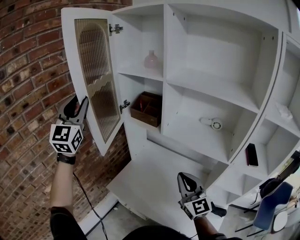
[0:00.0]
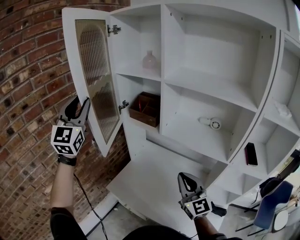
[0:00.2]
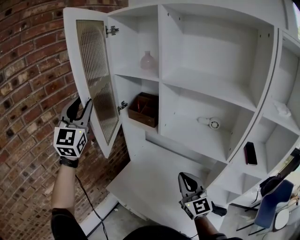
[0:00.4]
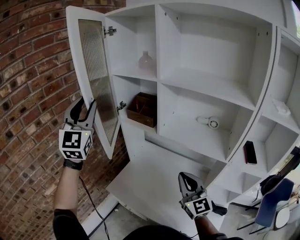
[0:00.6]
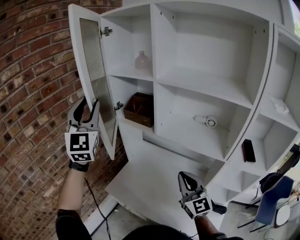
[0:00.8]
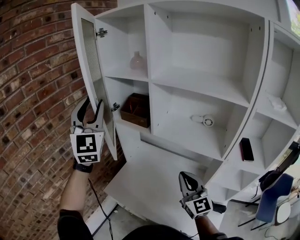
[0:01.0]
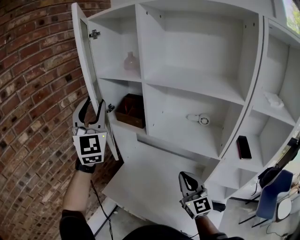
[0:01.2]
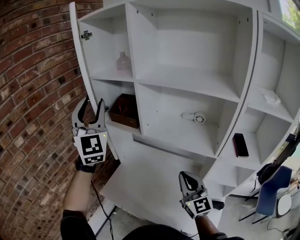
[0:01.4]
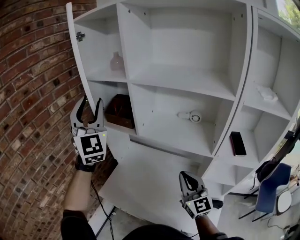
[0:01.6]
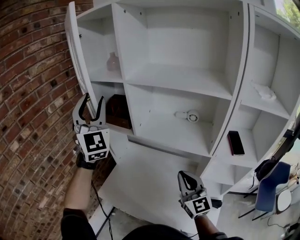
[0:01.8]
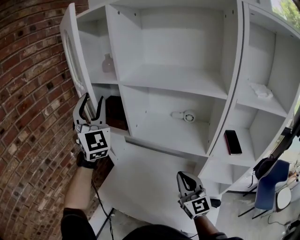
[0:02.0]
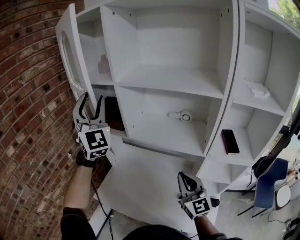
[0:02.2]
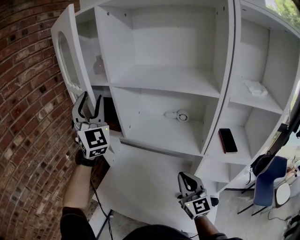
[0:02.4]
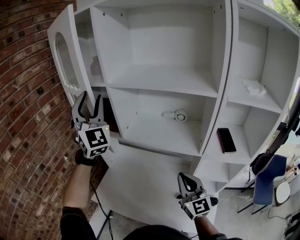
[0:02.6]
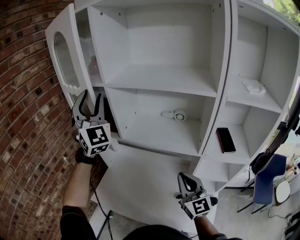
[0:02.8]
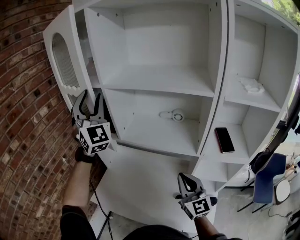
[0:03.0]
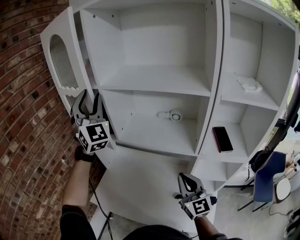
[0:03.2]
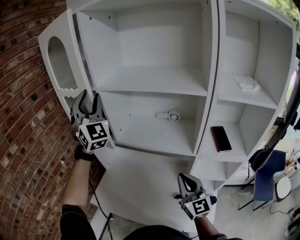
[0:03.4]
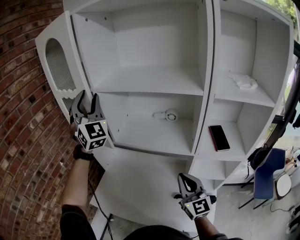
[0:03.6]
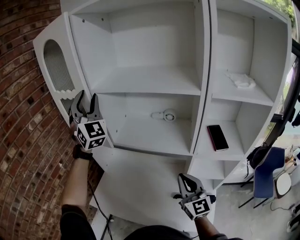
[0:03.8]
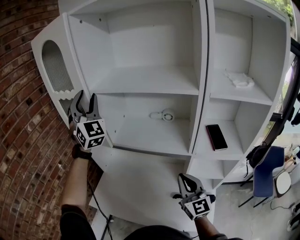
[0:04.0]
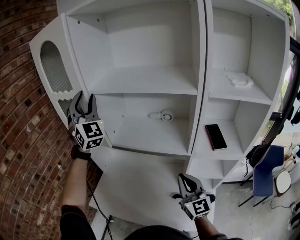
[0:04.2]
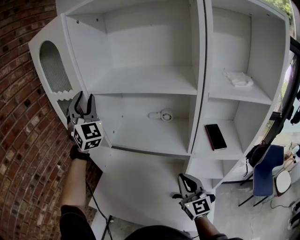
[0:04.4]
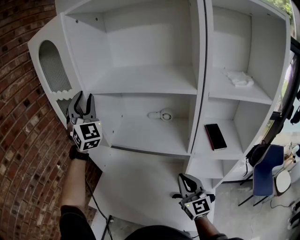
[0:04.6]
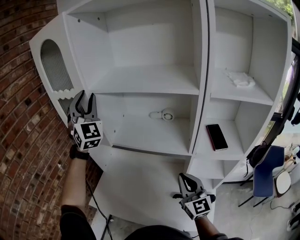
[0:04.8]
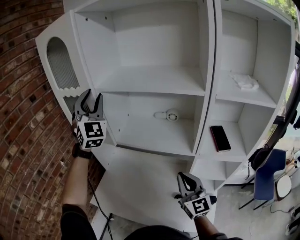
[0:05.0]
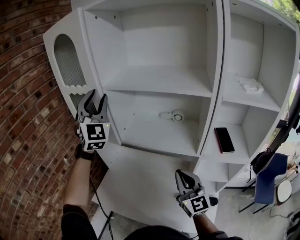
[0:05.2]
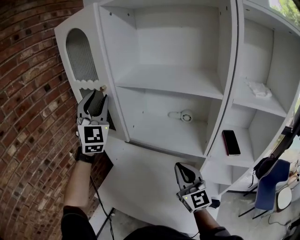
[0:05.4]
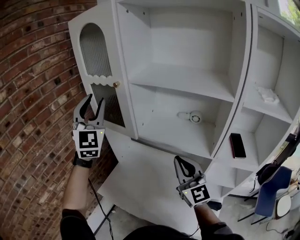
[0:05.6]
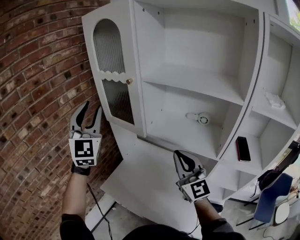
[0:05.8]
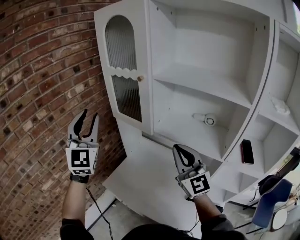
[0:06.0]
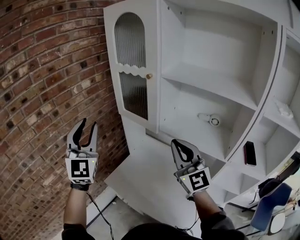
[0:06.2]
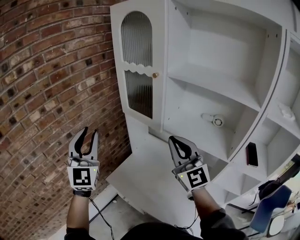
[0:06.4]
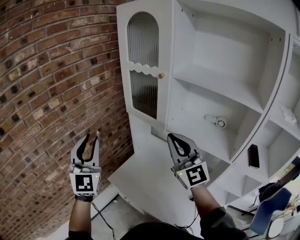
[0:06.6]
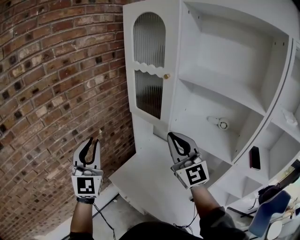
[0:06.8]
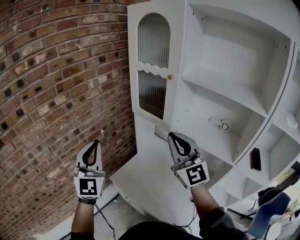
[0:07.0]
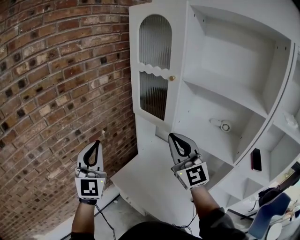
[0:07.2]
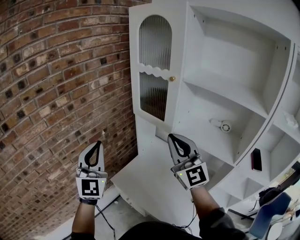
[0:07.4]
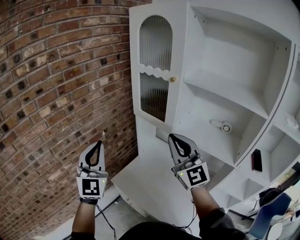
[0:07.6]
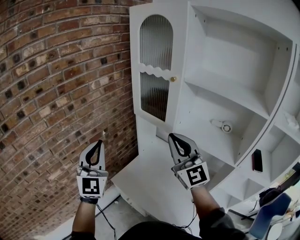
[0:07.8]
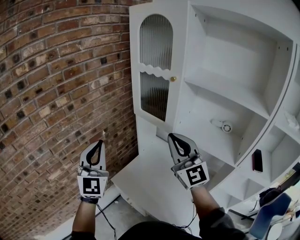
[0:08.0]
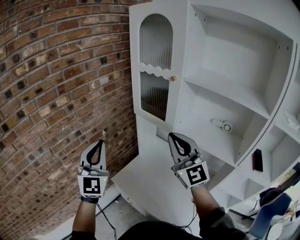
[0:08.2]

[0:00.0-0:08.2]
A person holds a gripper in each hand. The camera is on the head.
0:00.0 to 0:01.6: The left gripper goes about 20 cm to the right. Meanwhile the right gripper moves to the right, about 10 cm.
0:01.6 to 0:03.2: The right gripper heads to the right, covering roughly 5 cm. The left gripper moves to the right and forward, some 10 cm.
0:03.2 to 0:05.0: The grippers make only small movements.
0:05.0 to 0:06.6: The right gripper shifts about 30 cm to the left, upward and forward, and turns by some 30 degrees; the left gripper heads to the left and backward, covering some 35 cm, and turns by roughly 20 degrees.
0:06.6 to 0:08.2: The left gripper closes.

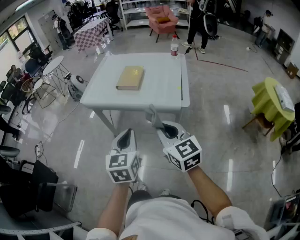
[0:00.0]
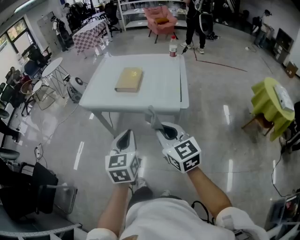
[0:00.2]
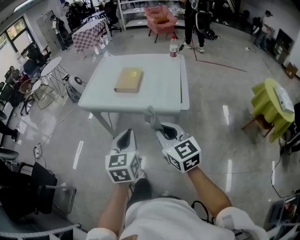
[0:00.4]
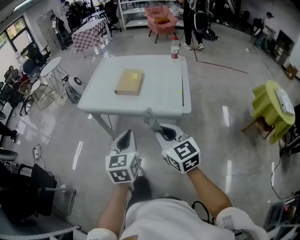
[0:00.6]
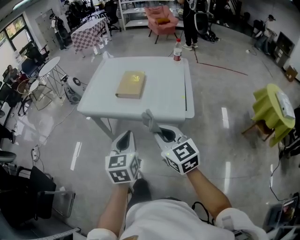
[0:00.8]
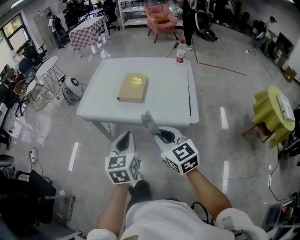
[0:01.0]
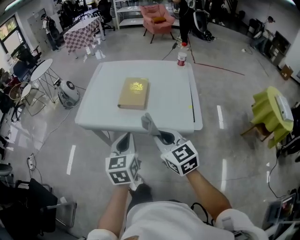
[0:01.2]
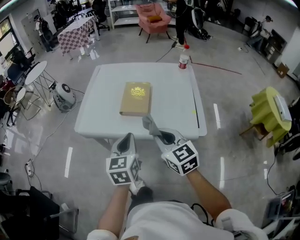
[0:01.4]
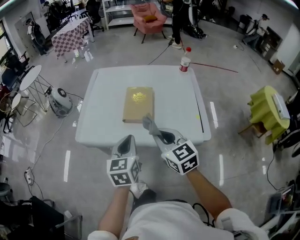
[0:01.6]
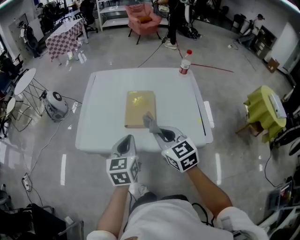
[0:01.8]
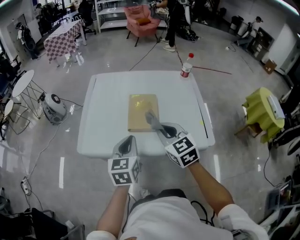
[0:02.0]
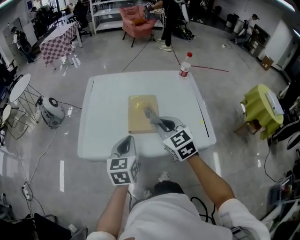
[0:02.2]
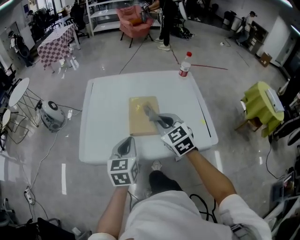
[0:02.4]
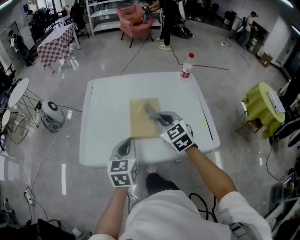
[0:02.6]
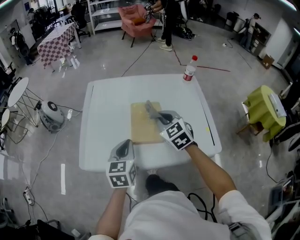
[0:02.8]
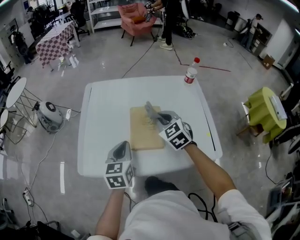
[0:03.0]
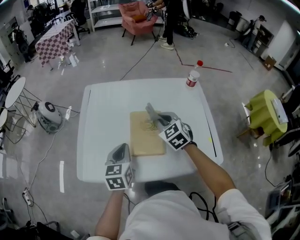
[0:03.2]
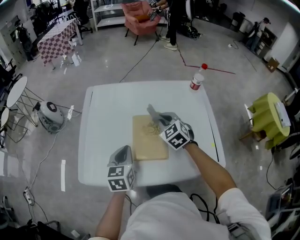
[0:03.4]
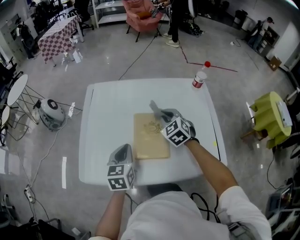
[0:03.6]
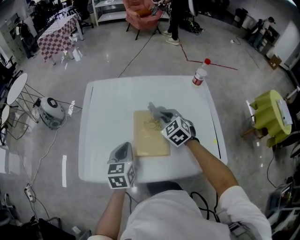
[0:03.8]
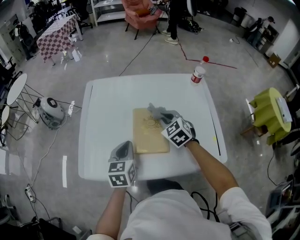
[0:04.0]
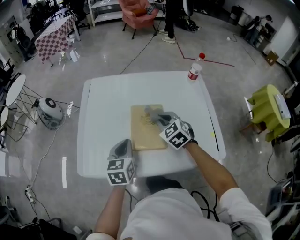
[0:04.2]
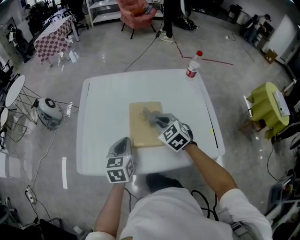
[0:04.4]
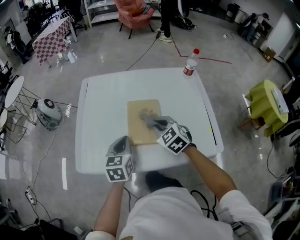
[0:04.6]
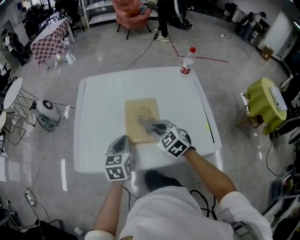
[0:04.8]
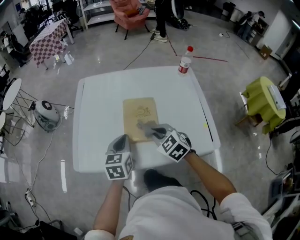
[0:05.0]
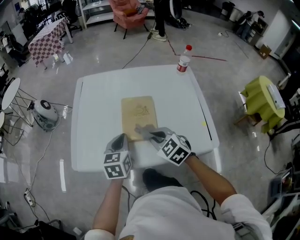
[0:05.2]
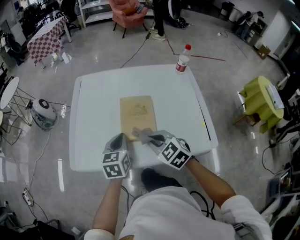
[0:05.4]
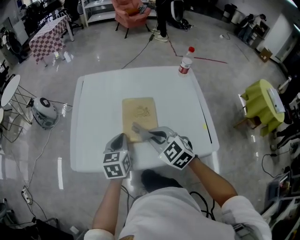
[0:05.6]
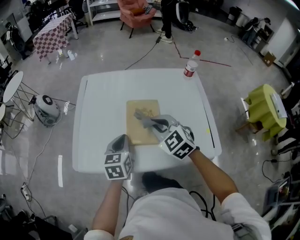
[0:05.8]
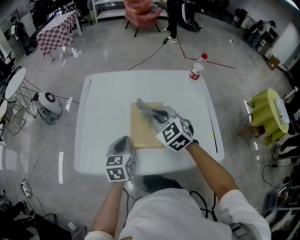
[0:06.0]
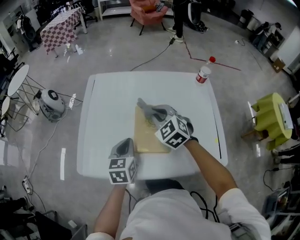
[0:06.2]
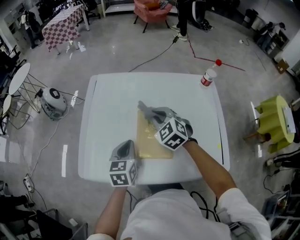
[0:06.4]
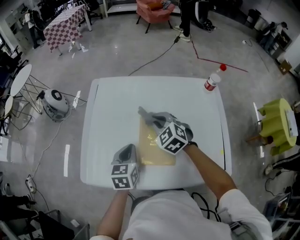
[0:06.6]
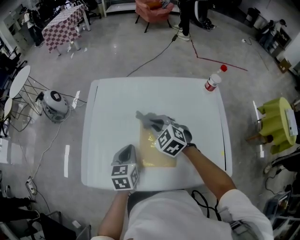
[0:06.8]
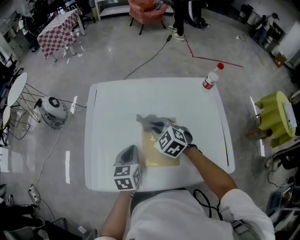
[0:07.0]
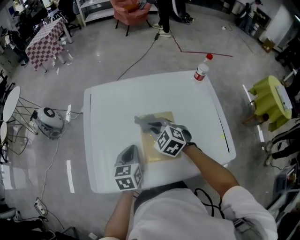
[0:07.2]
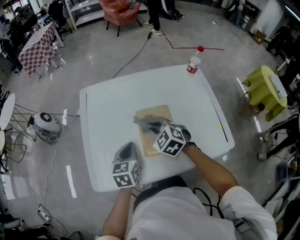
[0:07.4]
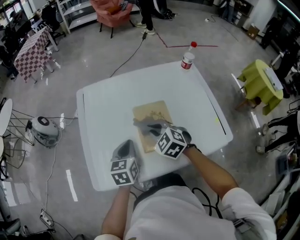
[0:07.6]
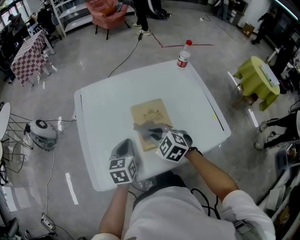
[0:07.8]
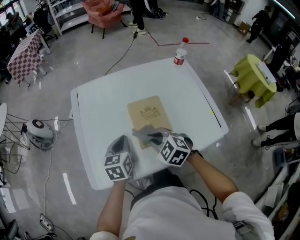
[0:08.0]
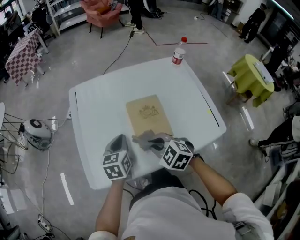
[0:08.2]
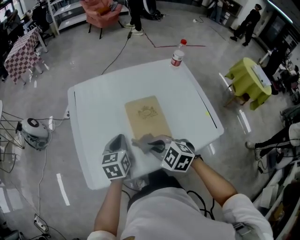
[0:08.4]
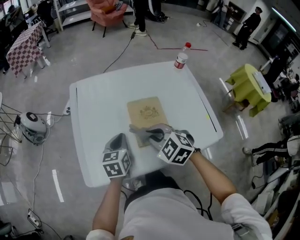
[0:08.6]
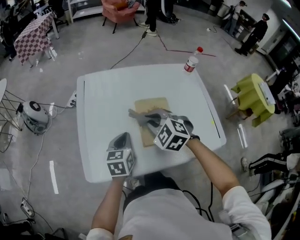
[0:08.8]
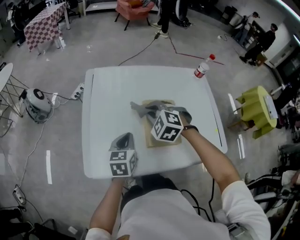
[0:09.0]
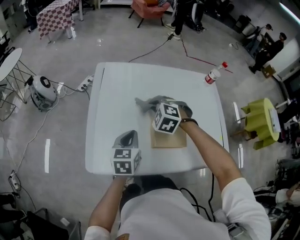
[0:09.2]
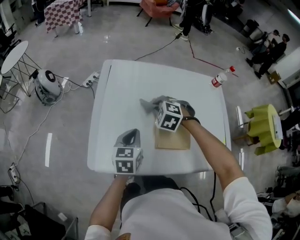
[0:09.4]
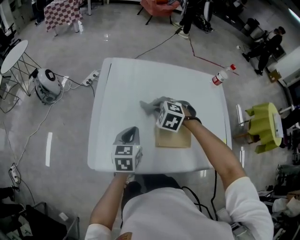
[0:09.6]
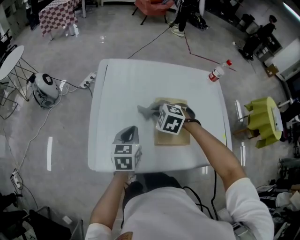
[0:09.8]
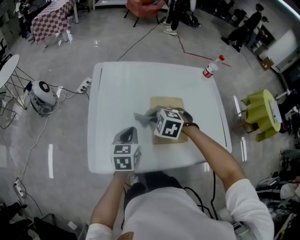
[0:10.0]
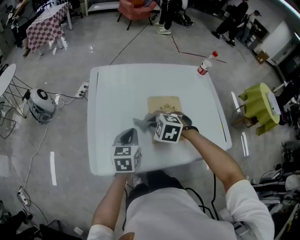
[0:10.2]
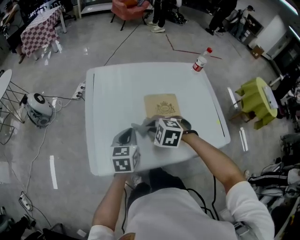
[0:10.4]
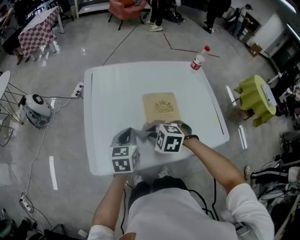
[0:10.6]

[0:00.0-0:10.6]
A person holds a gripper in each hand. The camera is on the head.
0:00.0 to 0:01.6: The two grippers go about 35 cm forward.
0:01.6 to 0:03.0: Both grippers travel together forward, some 20 cm. The right gripper rotates about 20 degrees.
0:03.0 to 0:04.6: The right gripper moves downward, approximately 5 cm, and travels forward and back again, approximately 10 cm each way.
0:04.6 to 0:06.0: The right gripper shifts roughly 5 cm upward, and reaches some 10 cm backward, then returns.
0:06.0 to 0:07.6: The left gripper moves approximately 5 cm. Meanwhile the right gripper shifts about 10 cm downward and to the left, and moves approximately 10 cm forward and comes back.
0:07.6 to 0:09.0: The right gripper goes approximately 5 cm to the left, goes backward and returns, about 10 cm each way, and swivels some 30 degrees.
0:09.0 to 0:10.6: The right gripper shifts approximately 10 cm backward, and swivels approximately 20 degrees.

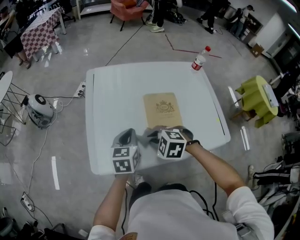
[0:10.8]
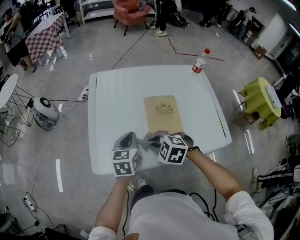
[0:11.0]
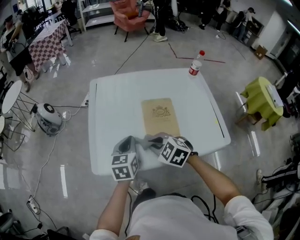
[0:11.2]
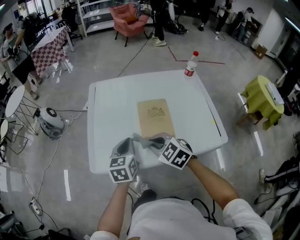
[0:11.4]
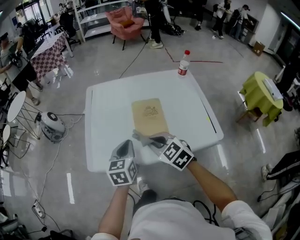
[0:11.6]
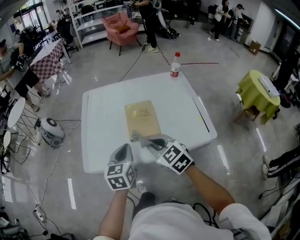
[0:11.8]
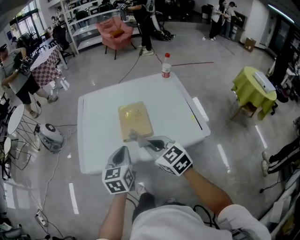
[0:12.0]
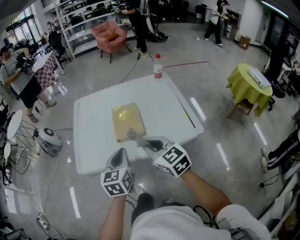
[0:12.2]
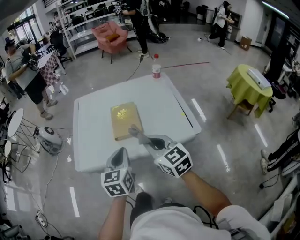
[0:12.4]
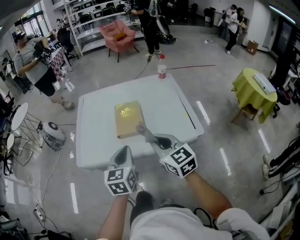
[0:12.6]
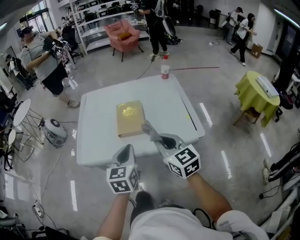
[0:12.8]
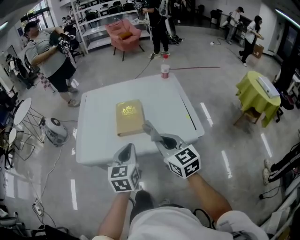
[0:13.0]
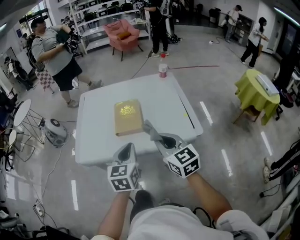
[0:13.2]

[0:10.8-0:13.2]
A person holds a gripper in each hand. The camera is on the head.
0:10.8 to 0:12.0: The two grippers go about 25 cm backward, upward and to the right. The right gripper tilts its fingers about 40 degrees upward.
0:12.0 to 0:13.2: Both grippers move to the right and backward, roughly 10 cm.

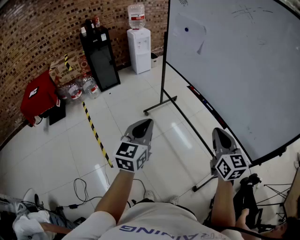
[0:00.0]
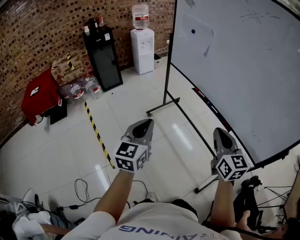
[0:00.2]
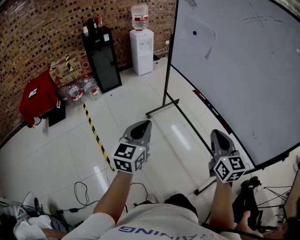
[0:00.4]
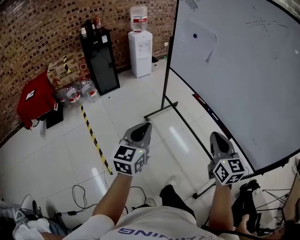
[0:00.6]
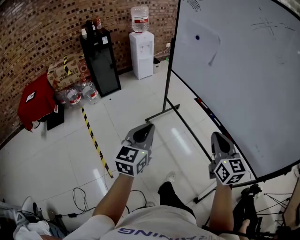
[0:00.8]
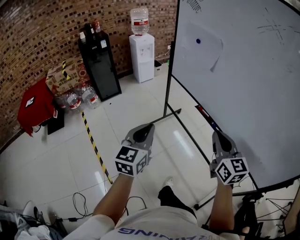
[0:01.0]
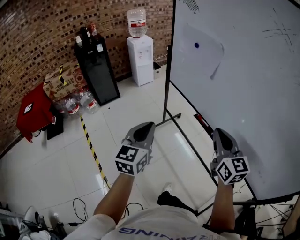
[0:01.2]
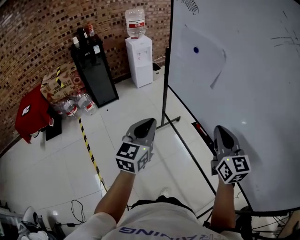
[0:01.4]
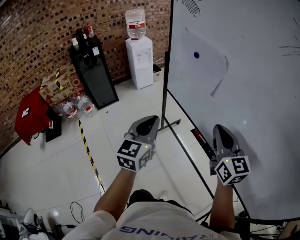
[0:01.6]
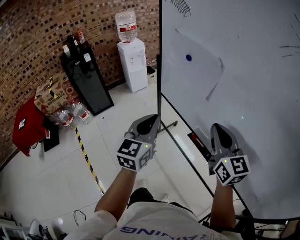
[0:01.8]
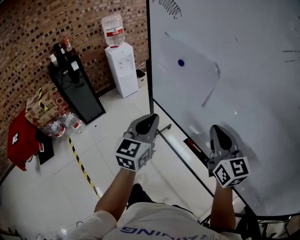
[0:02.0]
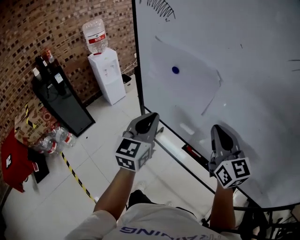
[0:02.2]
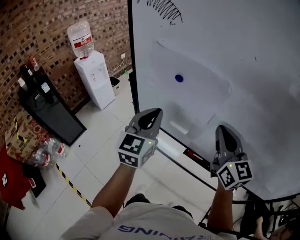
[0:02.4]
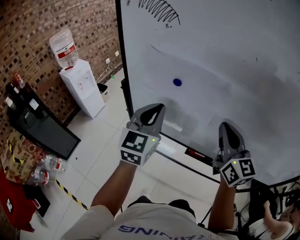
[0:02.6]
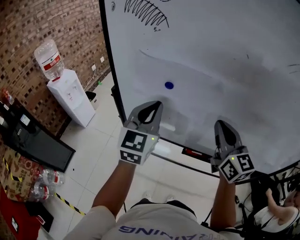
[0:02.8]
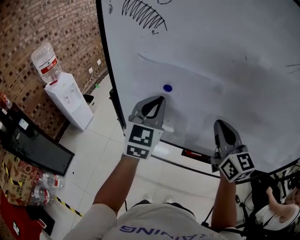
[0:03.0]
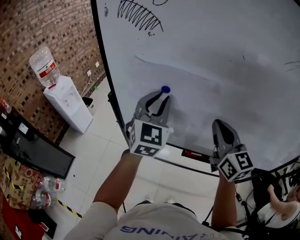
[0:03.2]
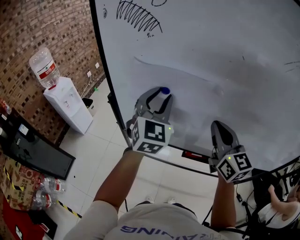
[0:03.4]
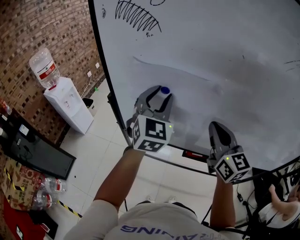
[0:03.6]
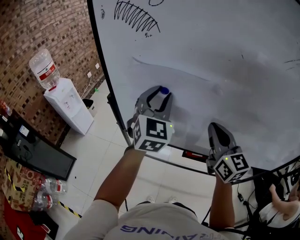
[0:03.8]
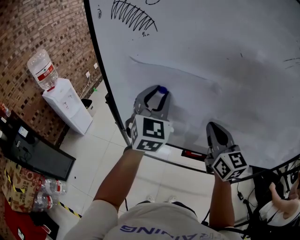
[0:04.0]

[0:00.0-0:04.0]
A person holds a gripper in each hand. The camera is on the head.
0:00.0 to 0:01.4: The grippers both shift forward by roughly 30 cm.
0:01.4 to 0:02.6: The left gripper ends up about 35 cm from where it was, and swivels roughly 40 degrees. Meanwhile the right gripper shifts by approximately 20 cm, and swivels about 30 degrees.
0:02.6 to 0:04.0: The left gripper moves forward, roughly 5 cm, and opens.
